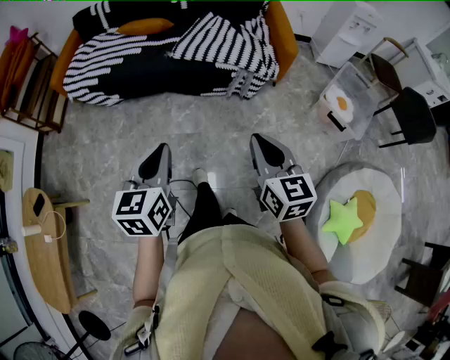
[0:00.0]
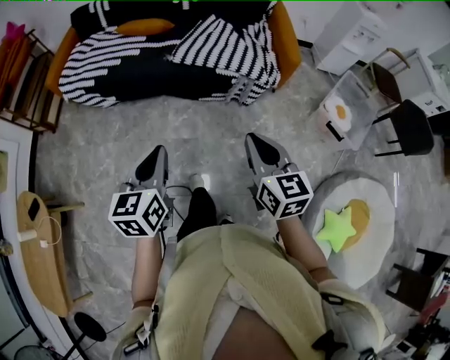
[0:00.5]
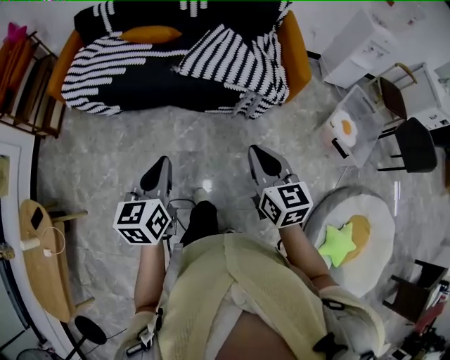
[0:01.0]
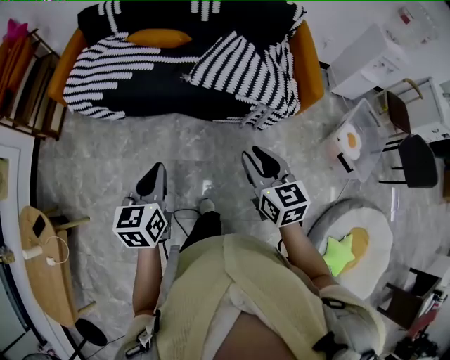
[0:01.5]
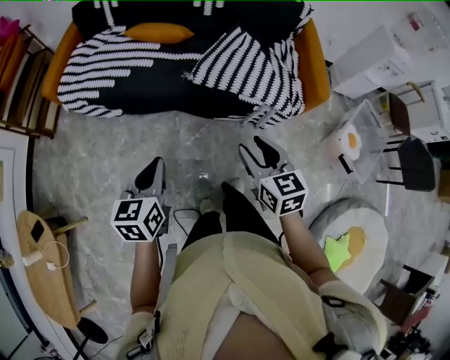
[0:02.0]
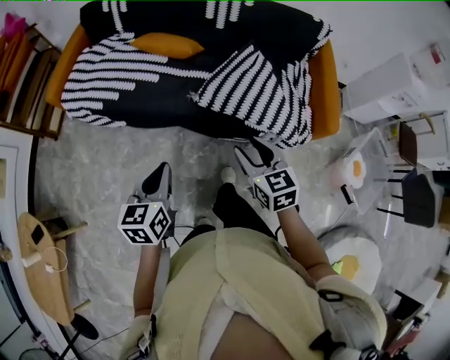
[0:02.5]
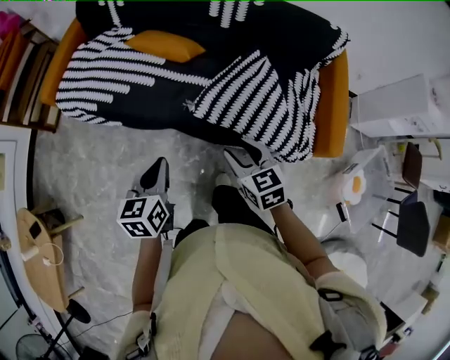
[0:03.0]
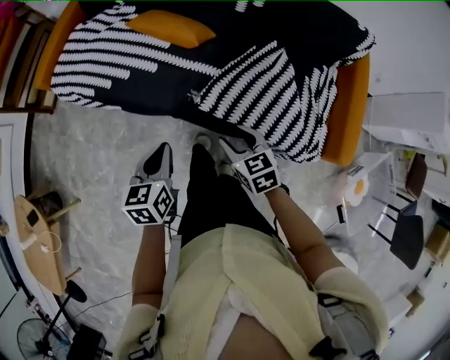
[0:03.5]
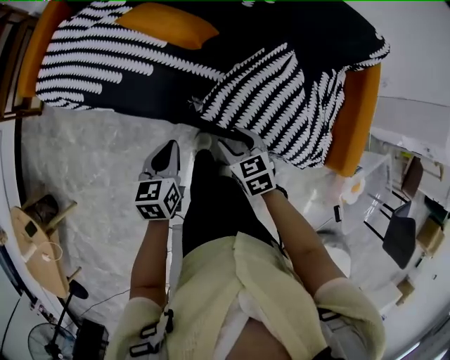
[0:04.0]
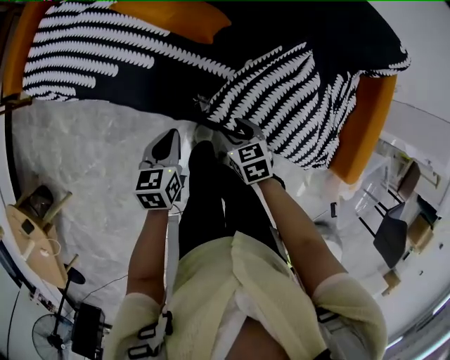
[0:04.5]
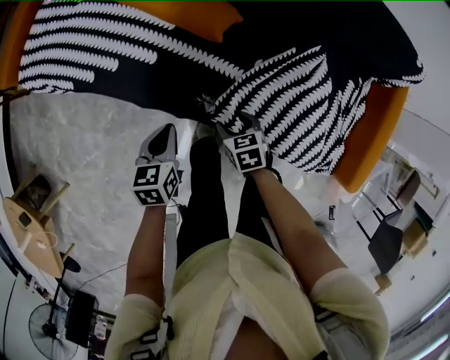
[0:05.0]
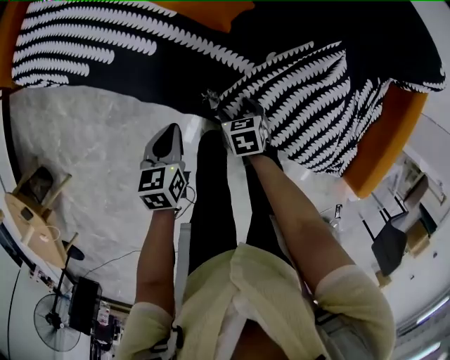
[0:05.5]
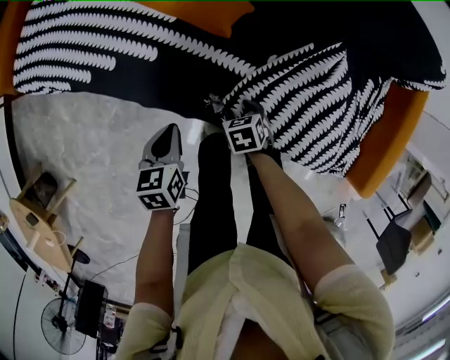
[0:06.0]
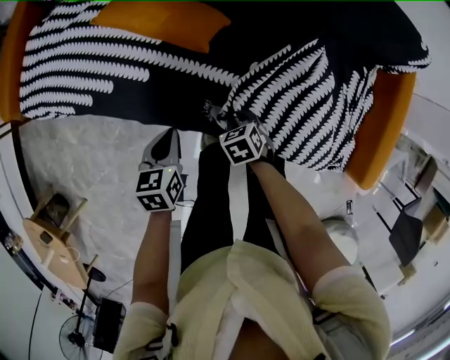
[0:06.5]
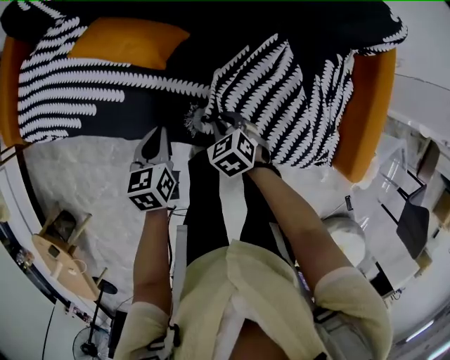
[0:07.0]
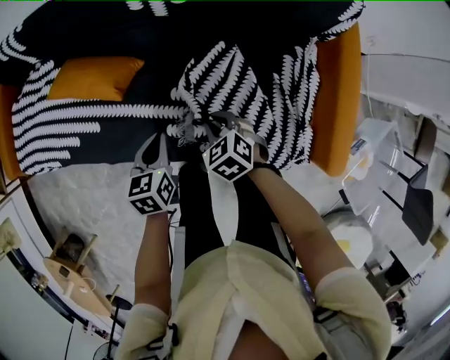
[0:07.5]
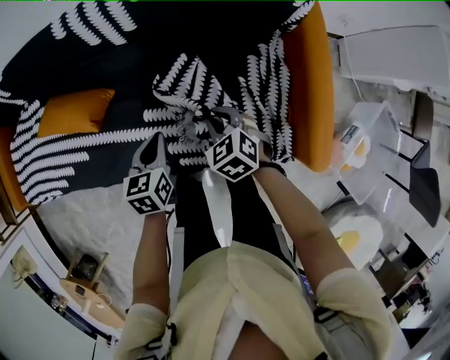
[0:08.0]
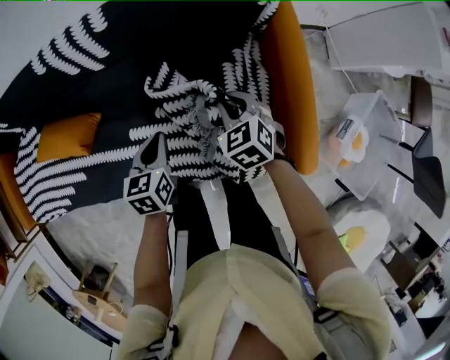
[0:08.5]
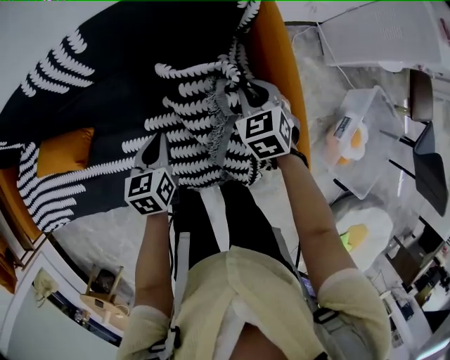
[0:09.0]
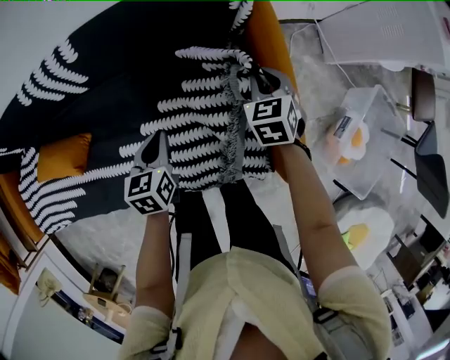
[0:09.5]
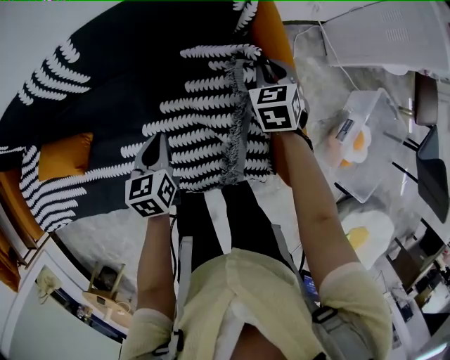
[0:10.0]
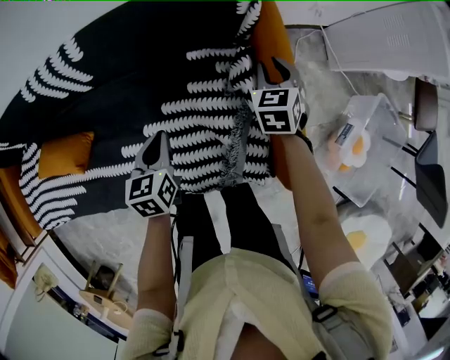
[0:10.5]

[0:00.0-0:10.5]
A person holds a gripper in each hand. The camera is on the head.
0:00.0 to 0:02.0: The right gripper moves forward, approximately 30 cm, and opens up. Meanwhile the left gripper goes approximately 30 cm forward and to the left.
0:02.0 to 0:04.0: The grippers both shift forward and downward by approximately 40 cm. The right gripper swivels roughly 30 degrees.
0:04.0 to 0:06.5: The left gripper travels forward and downward by some 15 cm. The right gripper heads downward and forward, covering about 20 cm, turns by approximately 20 degrees, and closes.
0:06.5 to 0:08.5: The pair of grippers is taken about 40 cm. The left gripper rotates approximately 20 degrees, while the right gripper changes its angle by some 30 degrees.
0:08.5 to 0:10.5: The left gripper moves to the right and forward, some 10 cm. The right gripper heads to the right and forward, covering approximately 25 cm, and swivels roughly 30 degrees.

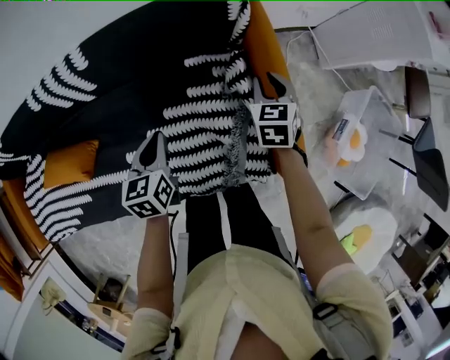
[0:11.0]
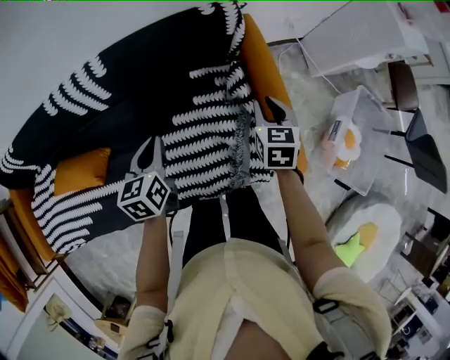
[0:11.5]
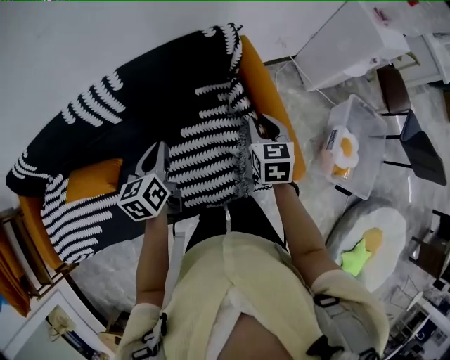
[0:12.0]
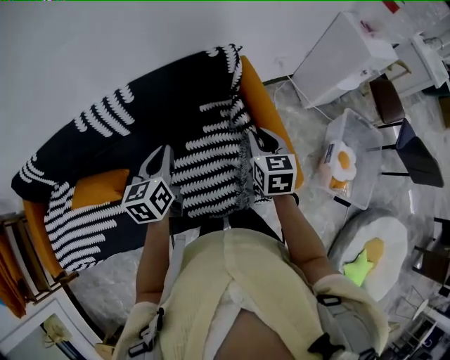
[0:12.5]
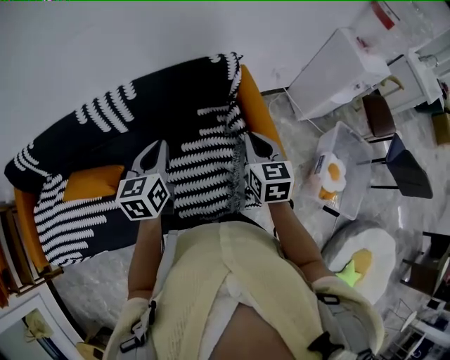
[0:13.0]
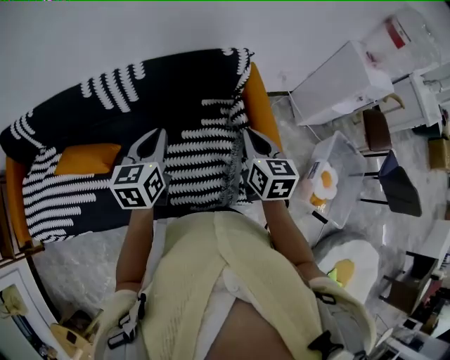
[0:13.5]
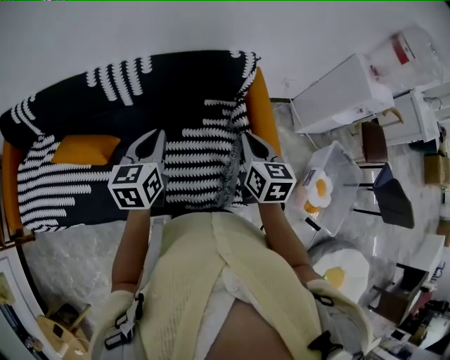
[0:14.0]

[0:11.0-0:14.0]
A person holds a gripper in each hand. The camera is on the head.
0:11.0 to 0:12.5: The left gripper moves upward, roughly 20 cm. Meanwhile the right gripper travels upward and backward by approximately 25 cm.
0:12.5 to 0:14.0: The left gripper travels backward by roughly 5 cm; the right gripper is displaced to the left, upward and backward by approximately 10 cm.

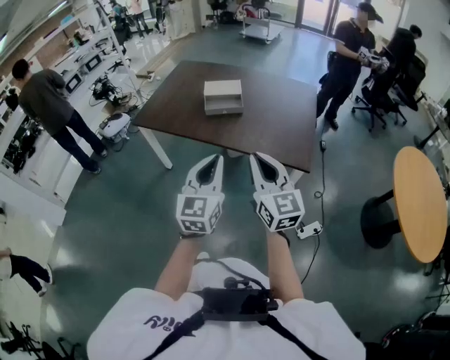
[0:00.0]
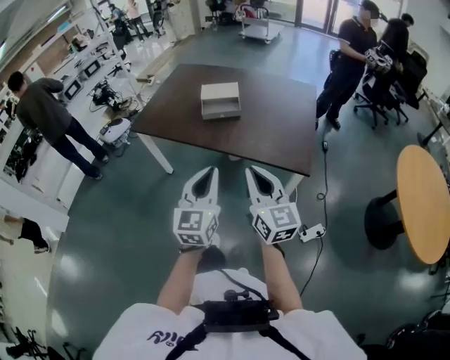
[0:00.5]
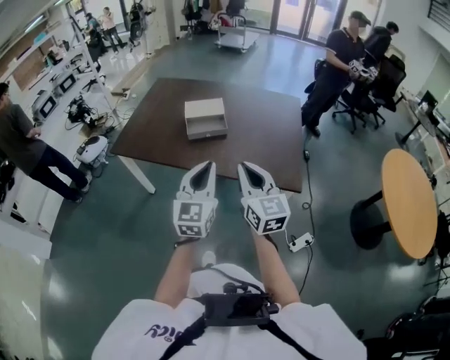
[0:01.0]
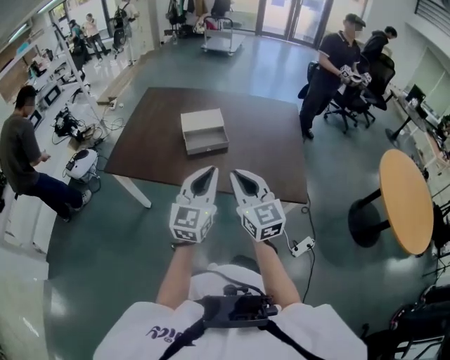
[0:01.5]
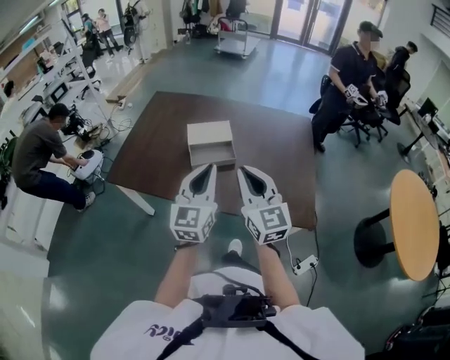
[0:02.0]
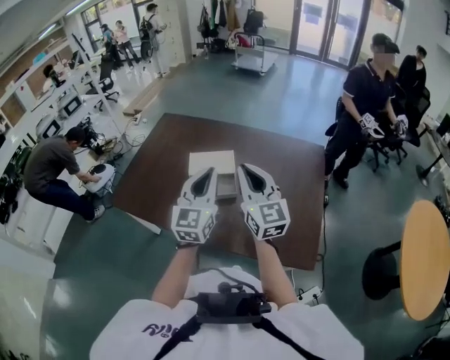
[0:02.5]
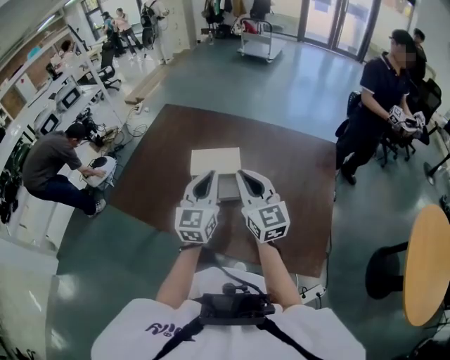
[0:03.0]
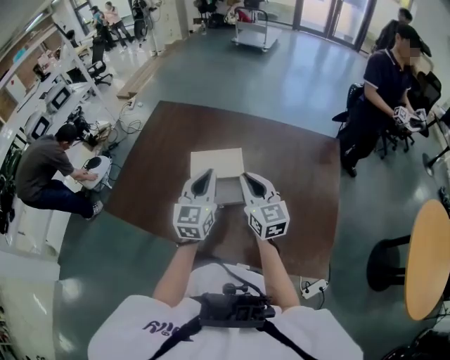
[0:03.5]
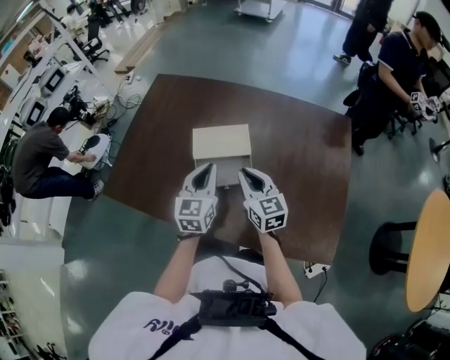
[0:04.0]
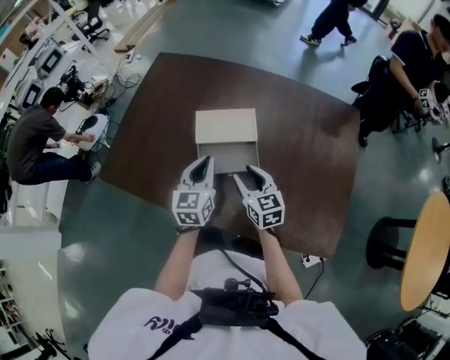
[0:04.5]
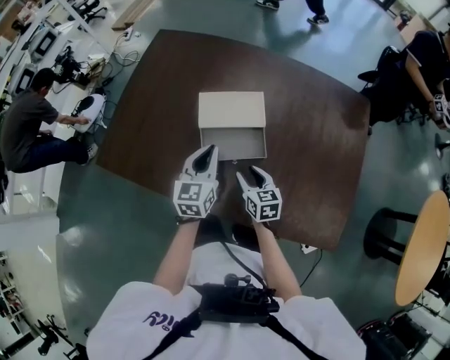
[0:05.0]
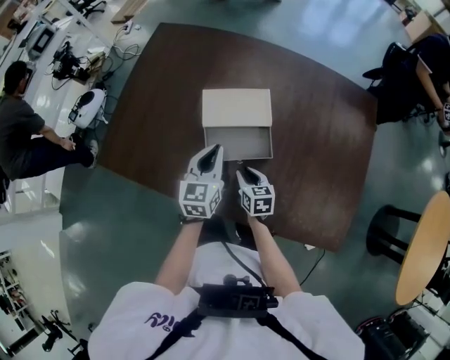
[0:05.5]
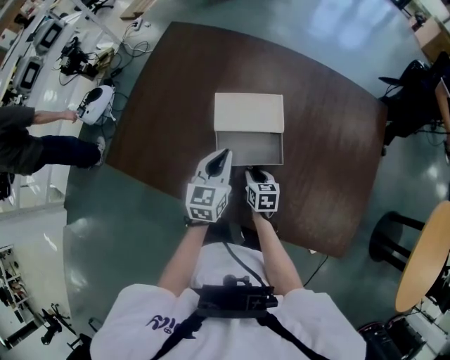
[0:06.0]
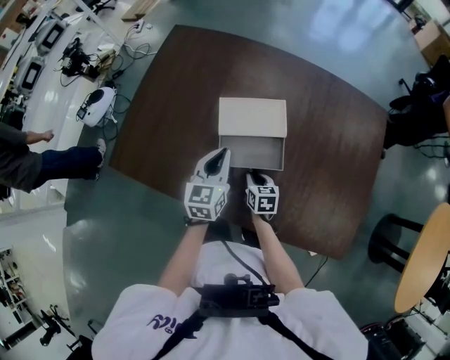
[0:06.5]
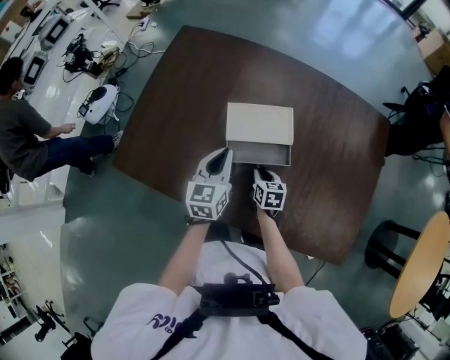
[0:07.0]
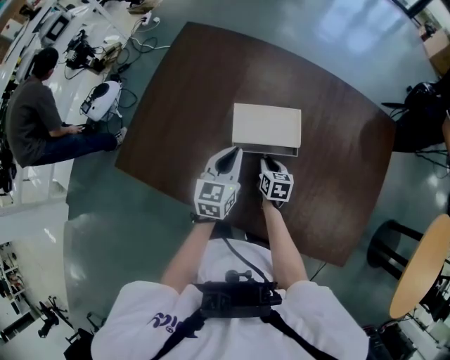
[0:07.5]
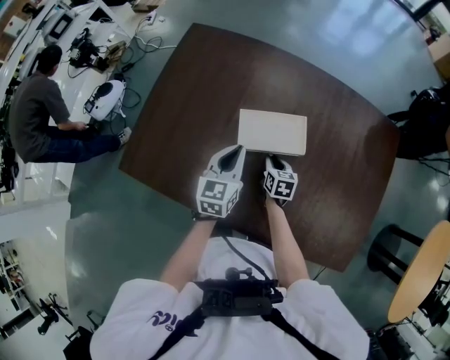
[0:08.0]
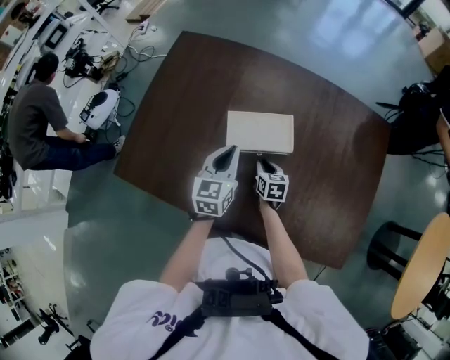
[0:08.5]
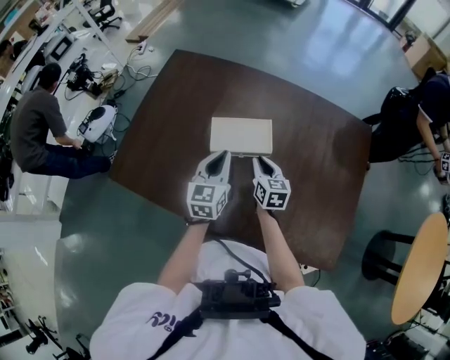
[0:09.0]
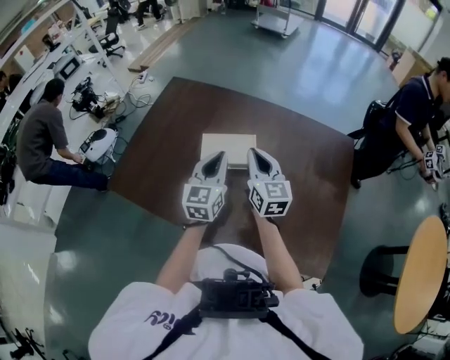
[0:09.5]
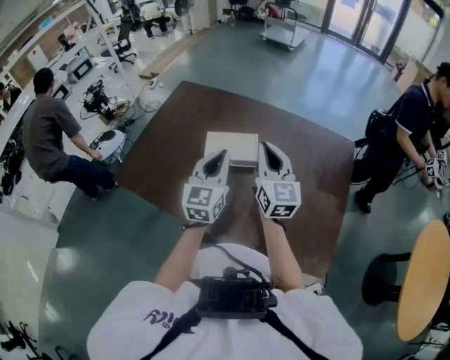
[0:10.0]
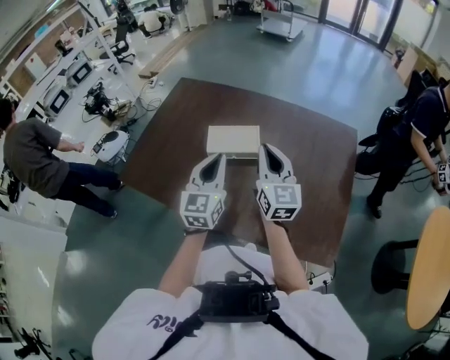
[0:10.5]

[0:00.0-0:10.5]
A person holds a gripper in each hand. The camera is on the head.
0:00.0 to 0:02.0: Both grippers travel together forward, some 30 cm.
0:02.0 to 0:04.0: Both grippers move forward and downward, some 35 cm. The right gripper changes its angle by approximately 20 degrees, while the left gripper swivels roughly 20 degrees.
0:04.0 to 0:06.5: The right gripper moves downward, about 25 cm, angles its fingers downward, by some 30 degrees, and opens, then closes again, while the left gripper shifts some 10 cm downward, to the left and forward.
0:06.5 to 0:08.5: The right gripper travels forward by roughly 10 cm. Meanwhile the left gripper shifts approximately 5 cm forward.
0:08.5 to 0:10.5: The right gripper heads upward, covering roughly 35 cm, and angles its fingers upward, by some 50 degrees. The left gripper shifts some 25 cm backward, upward and to the right, and rotates about 20 degrees.

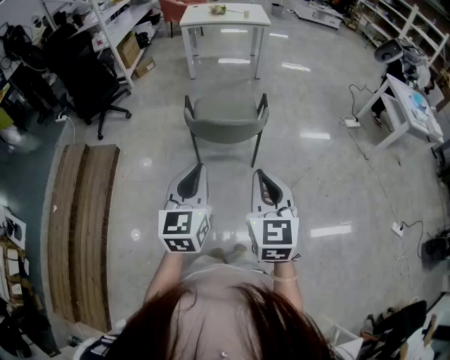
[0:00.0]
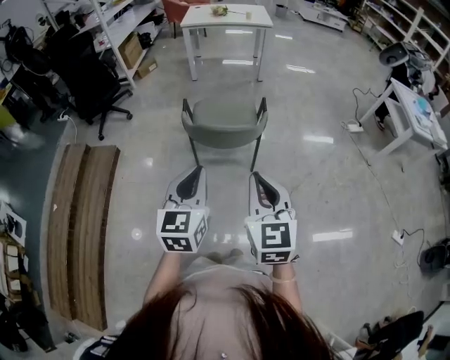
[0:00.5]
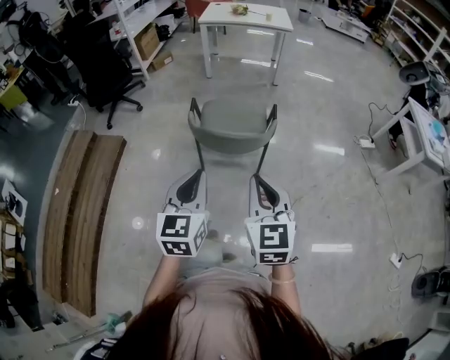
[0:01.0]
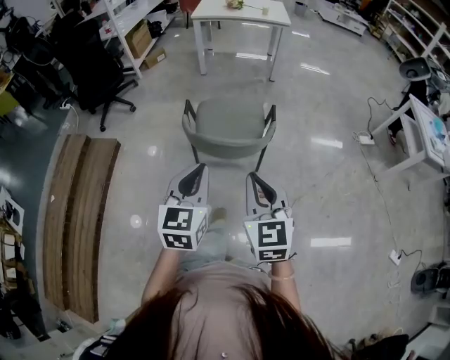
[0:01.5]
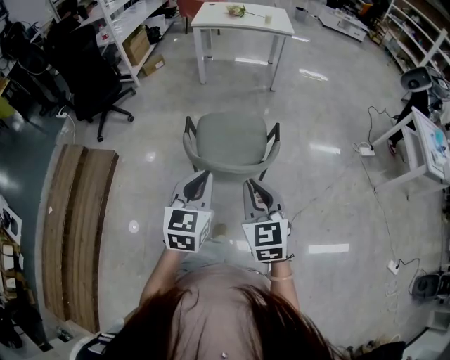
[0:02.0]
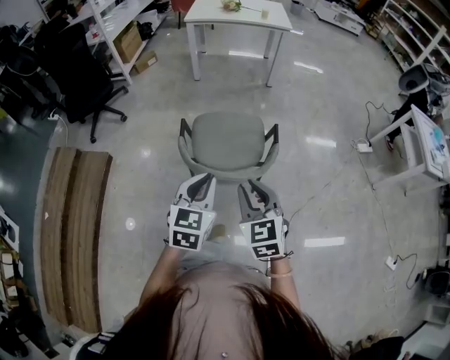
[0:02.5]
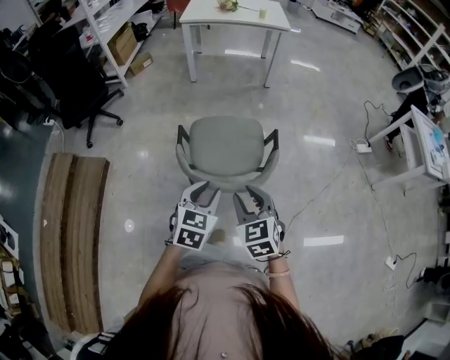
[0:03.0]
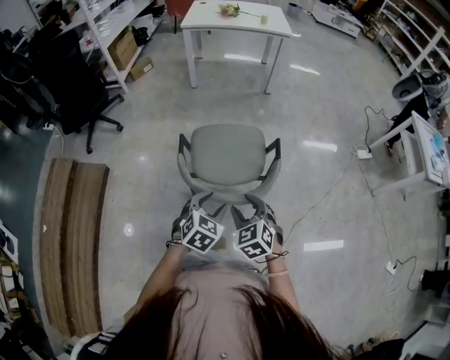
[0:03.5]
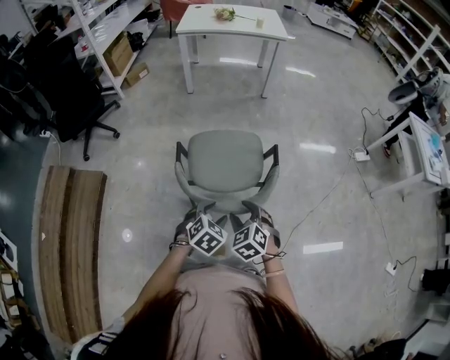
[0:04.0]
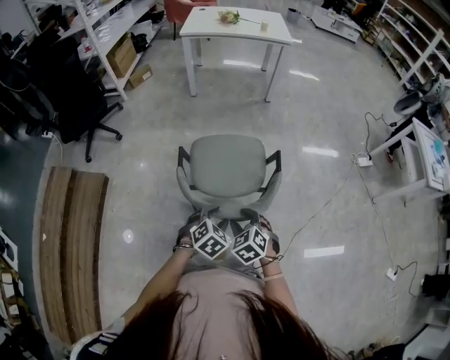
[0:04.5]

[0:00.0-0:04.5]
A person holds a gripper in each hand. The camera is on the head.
0:00.0 to 0:02.0: Both grippers travel together forward, approximately 25 cm.
0:02.0 to 0:04.5: The grippers both shift downward and forward by some 25 cm. The right gripper points its fingers roughly 30 degrees further downward, and opens. The left gripper points its fingers approximately 40 degrees further downward, and opens up.
